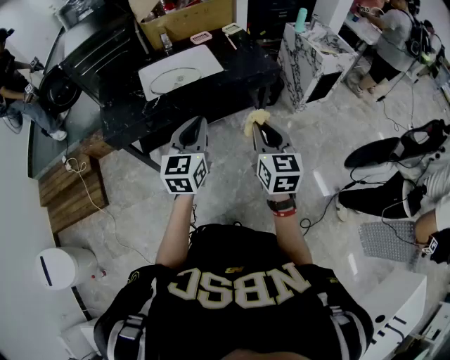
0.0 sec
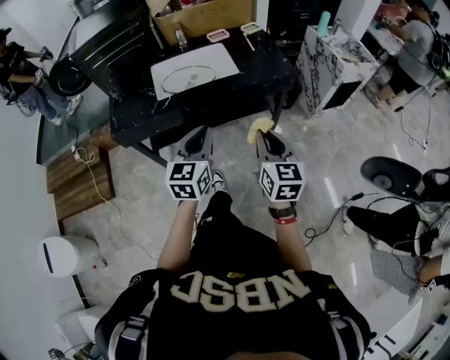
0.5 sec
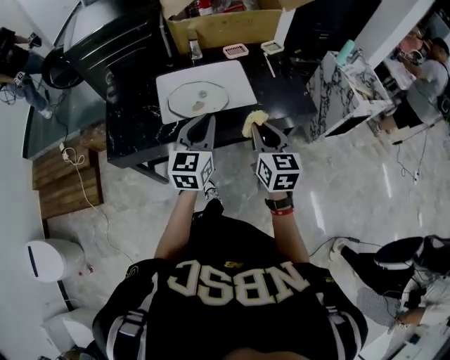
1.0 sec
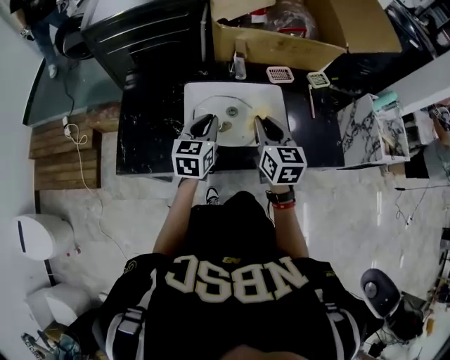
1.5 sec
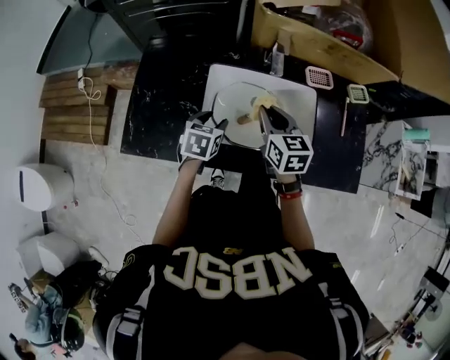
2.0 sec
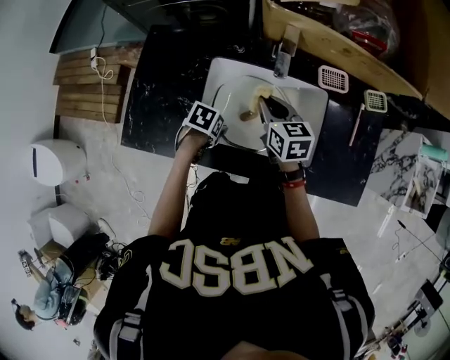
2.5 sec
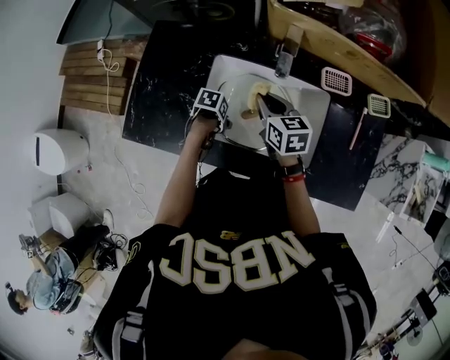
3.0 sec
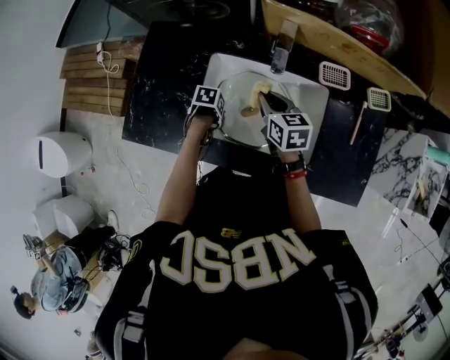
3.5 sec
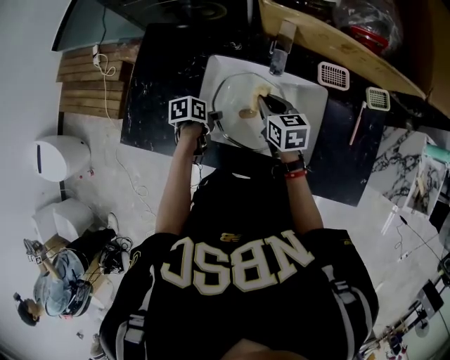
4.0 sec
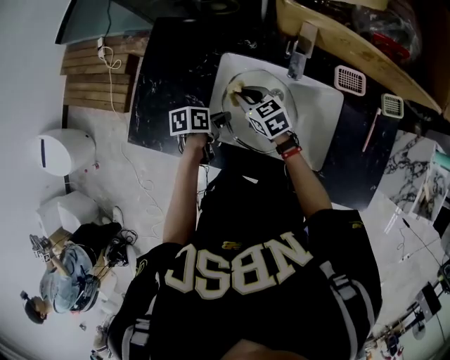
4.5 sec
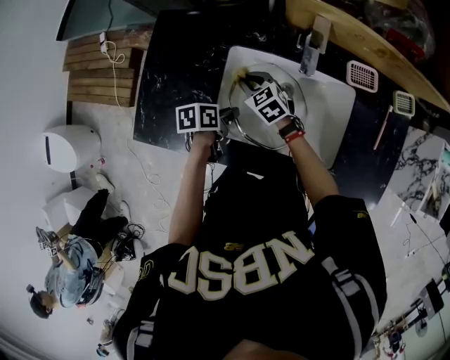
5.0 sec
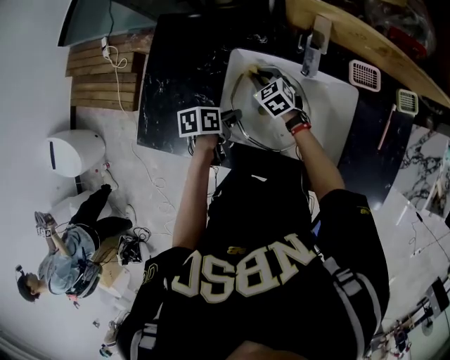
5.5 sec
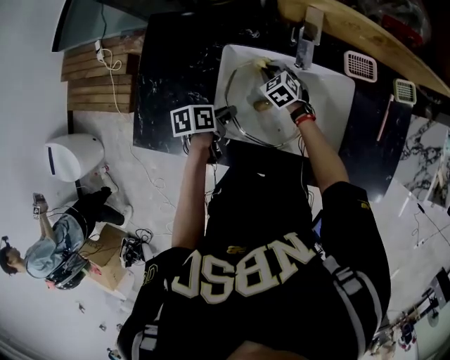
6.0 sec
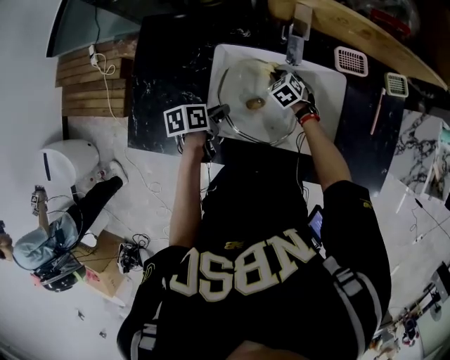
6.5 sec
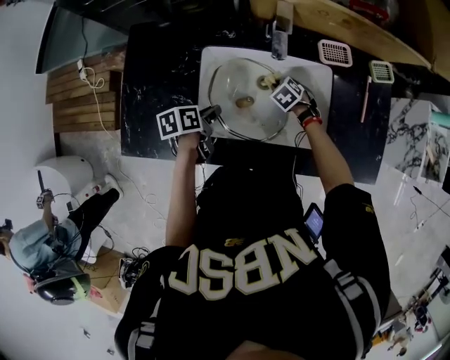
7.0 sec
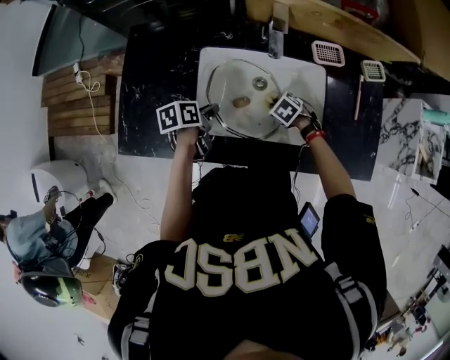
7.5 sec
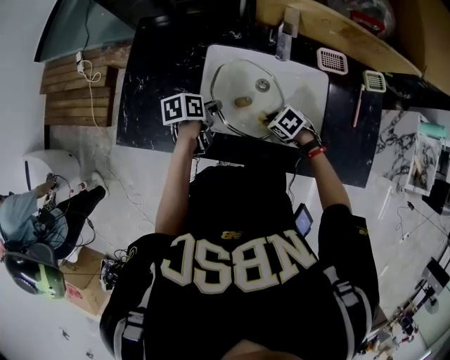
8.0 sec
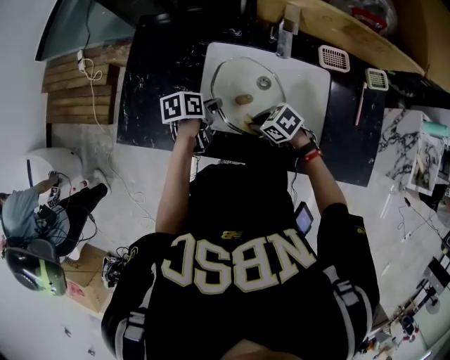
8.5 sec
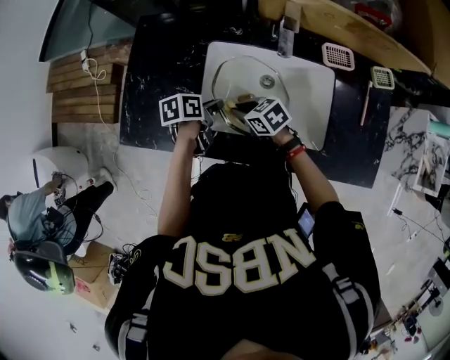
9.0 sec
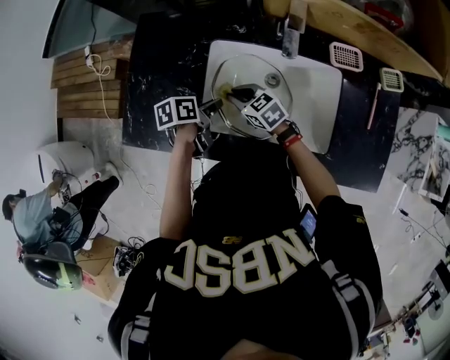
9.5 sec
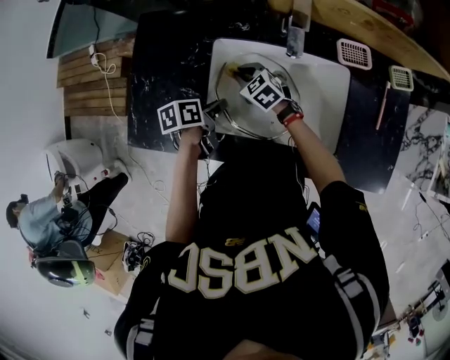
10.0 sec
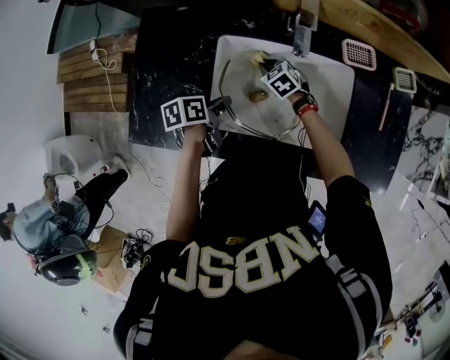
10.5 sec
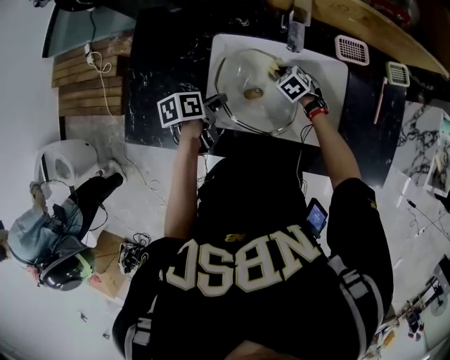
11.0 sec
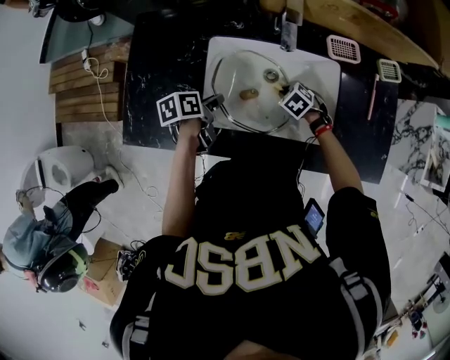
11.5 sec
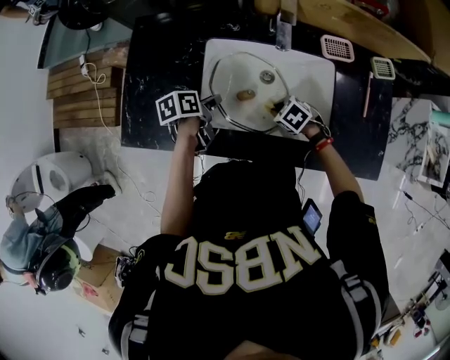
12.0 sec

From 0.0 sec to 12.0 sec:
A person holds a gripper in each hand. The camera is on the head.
From 0.0 sec to 2.0 sec: The pair of grippers is taken forward and to the left, some 50 cm. The right gripper swivels approximately 40 degrees. Meanwhile the left gripper moves downward, approximately 25 cm, angles its fingers downward, by some 40 degrees, and opens.
From 2.0 sec to 4.0 sec: Both grippers move downward, roughly 10 cm. The left gripper rotates around the line of its fingers by approximately 40 degrees, counterclockwise from behind, and closes its fingers.
From 4.0 sec to 6.0 sec: The right gripper shifts approximately 20 cm downward and forward, and changes its angle by some 40 degrees.
From 6.0 sec to 8.0 sec: The right gripper changes place by some 20 cm, and changes its angle by roughly 30 degrees.
From 8.0 sec to 10.0 sec: The right gripper ends up roughly 20 cm from where it was, and changes its angle by approximately 30 degrees.
From 10.0 sec to 12.0 sec: The right gripper moves to the right and backward, roughly 20 cm, and turns by about 30 degrees.

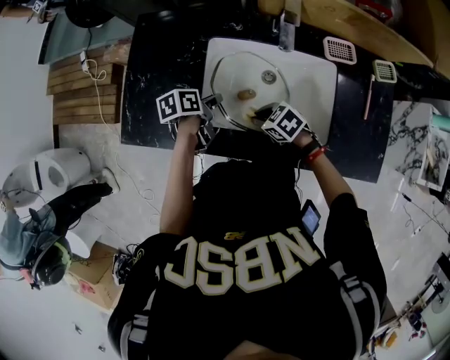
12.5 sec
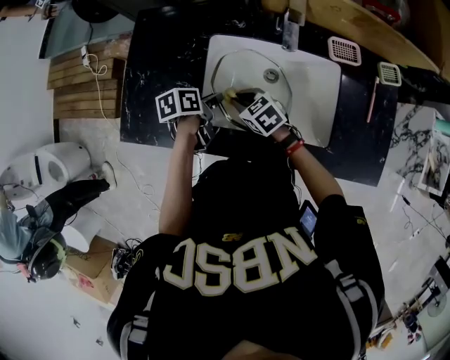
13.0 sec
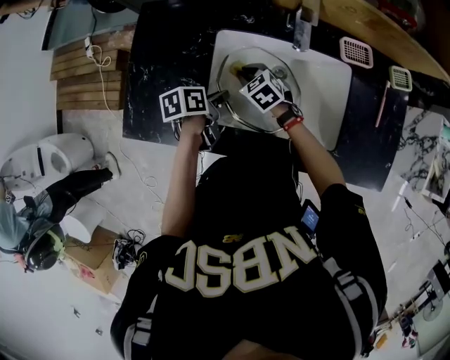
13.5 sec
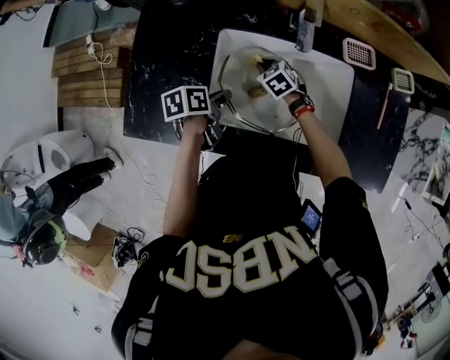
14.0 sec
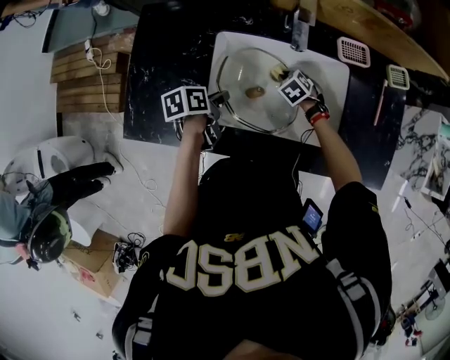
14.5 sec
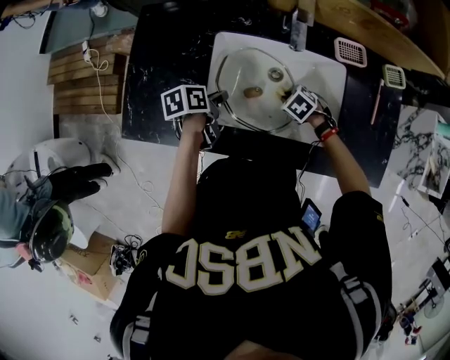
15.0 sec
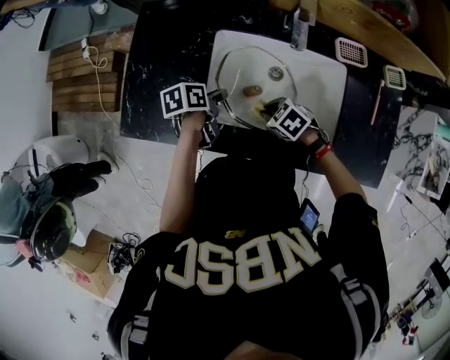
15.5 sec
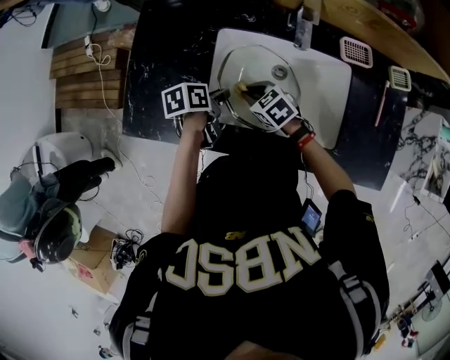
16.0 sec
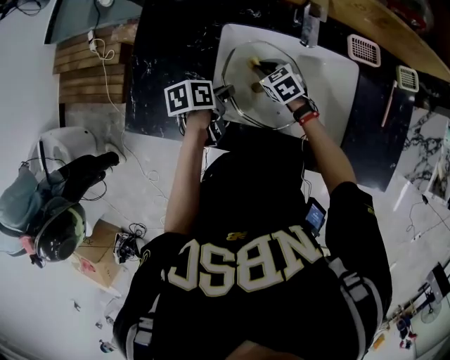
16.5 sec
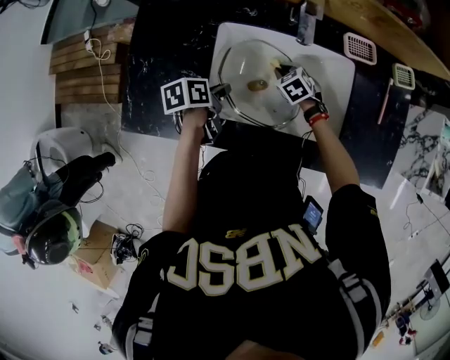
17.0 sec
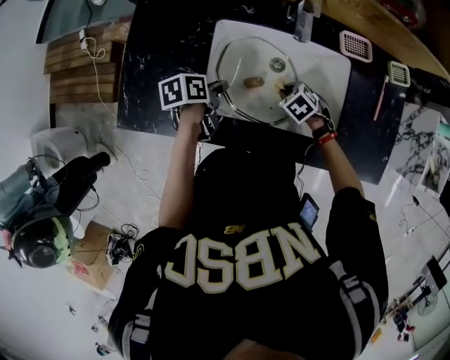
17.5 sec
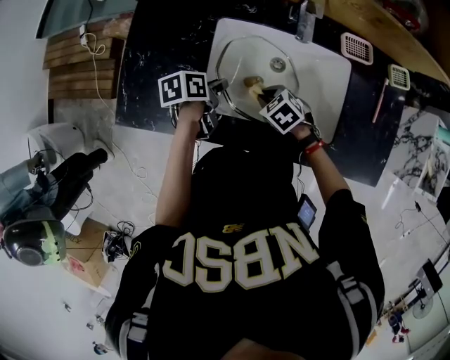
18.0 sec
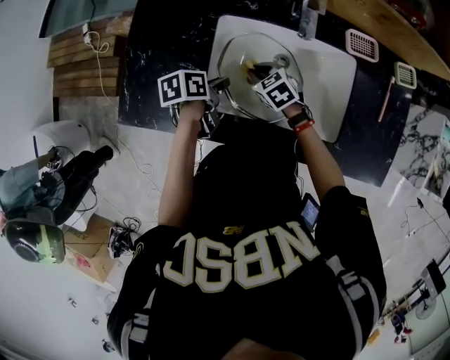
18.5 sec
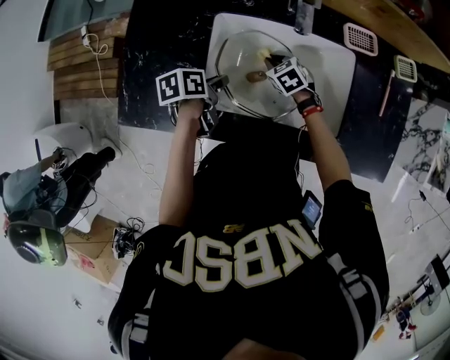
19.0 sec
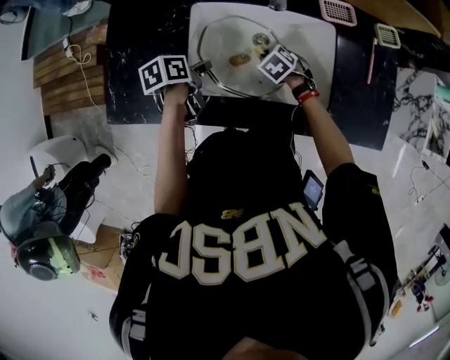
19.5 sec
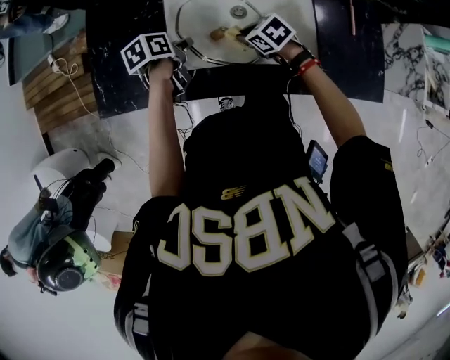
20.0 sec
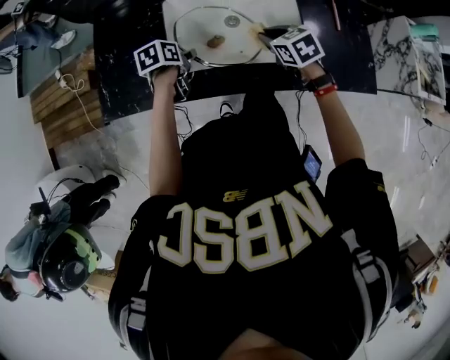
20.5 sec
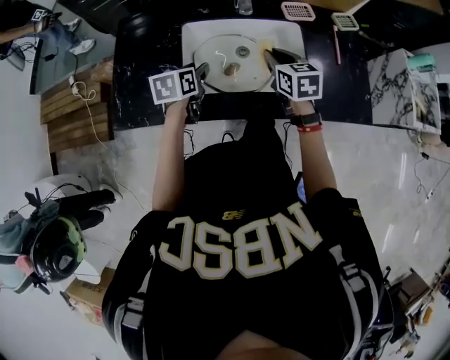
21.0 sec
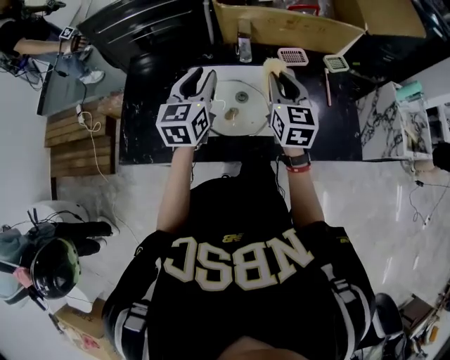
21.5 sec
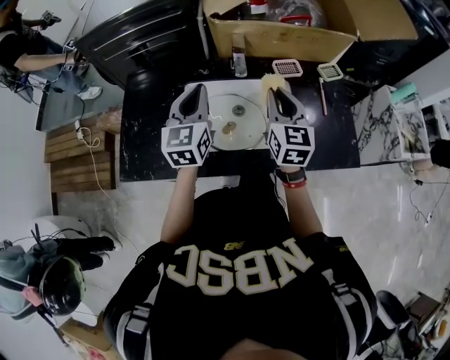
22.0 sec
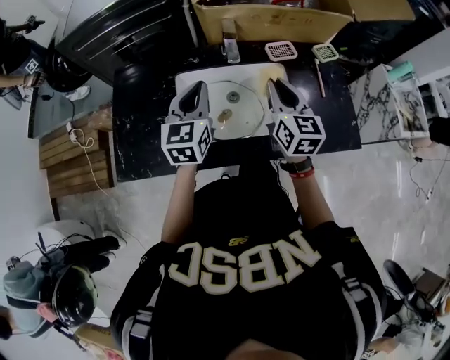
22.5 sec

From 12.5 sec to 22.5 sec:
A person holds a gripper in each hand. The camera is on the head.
From 12.5 sec to 14.5 sec: The right gripper shifts by approximately 20 cm, and swivels about 30 degrees.
From 14.5 sec to 16.5 sec: The right gripper changes its angle by approximately 20 degrees.
From 18.5 sec to 20.5 sec: The right gripper travels to the right, upward and backward by some 20 cm, and turns by roughly 20 degrees.
From 20.5 sec to 22.5 sec: The grippers both shift upward by roughly 20 cm. The left gripper tilts its fingers approximately 50 degrees upward, and closes, while the right gripper points its fingers some 40 degrees further upward.

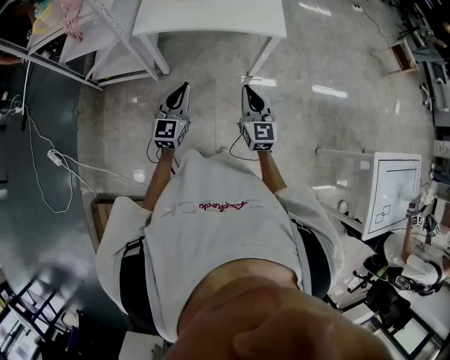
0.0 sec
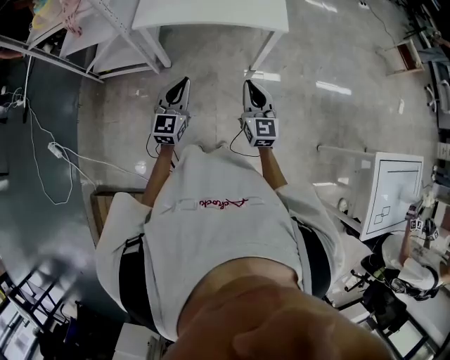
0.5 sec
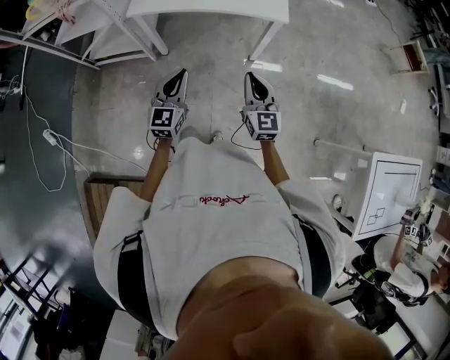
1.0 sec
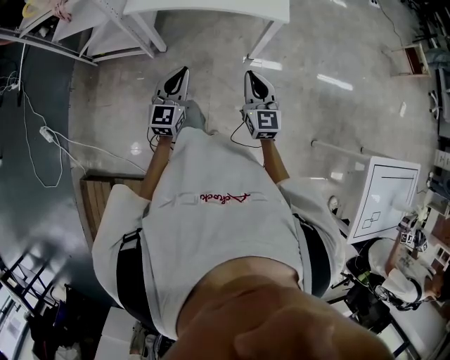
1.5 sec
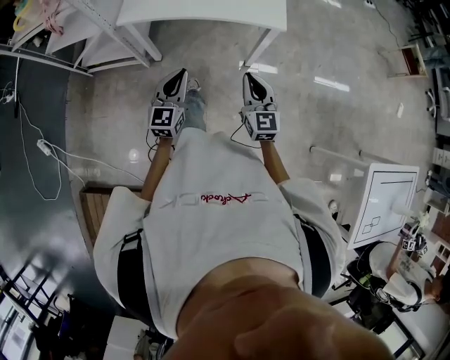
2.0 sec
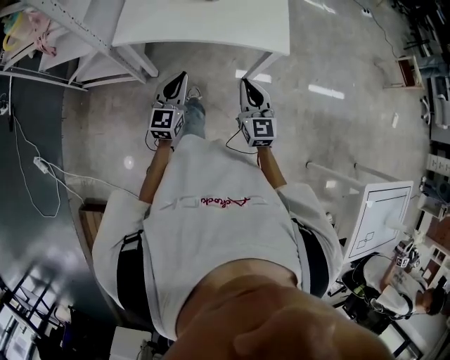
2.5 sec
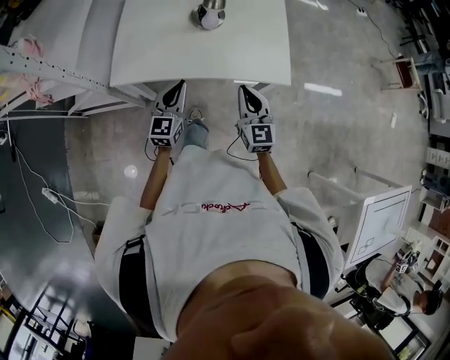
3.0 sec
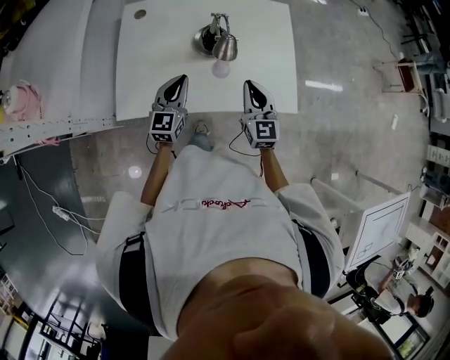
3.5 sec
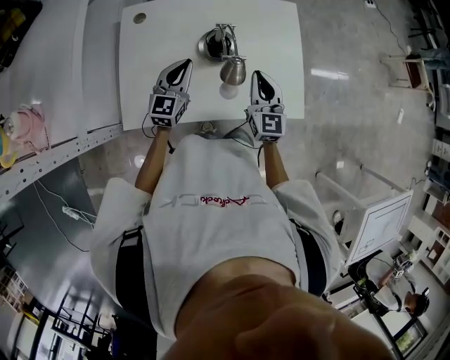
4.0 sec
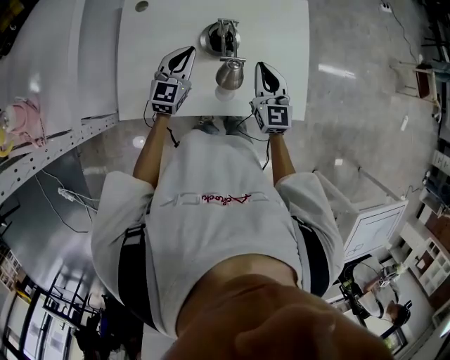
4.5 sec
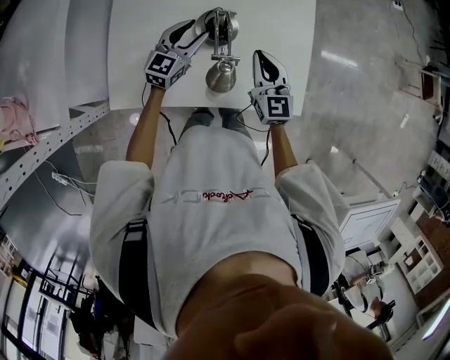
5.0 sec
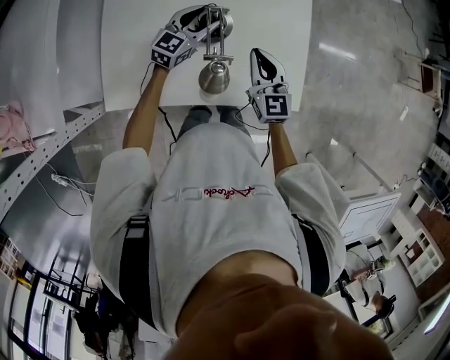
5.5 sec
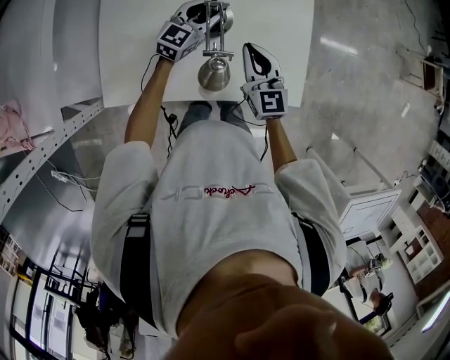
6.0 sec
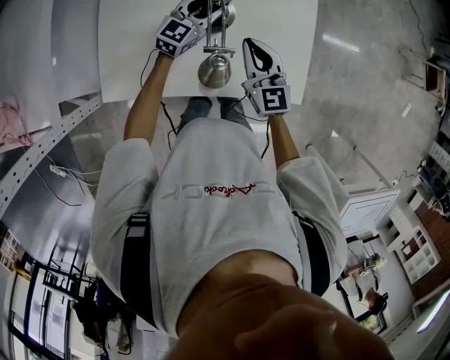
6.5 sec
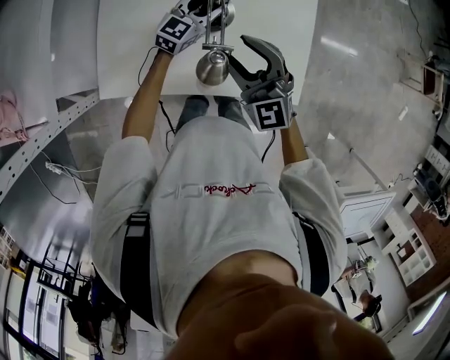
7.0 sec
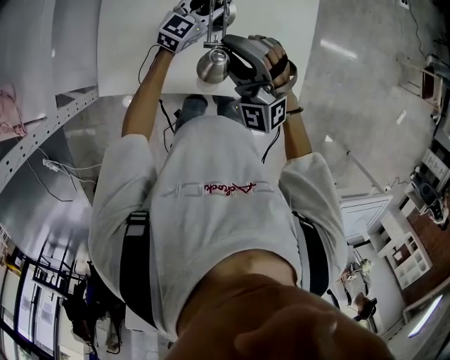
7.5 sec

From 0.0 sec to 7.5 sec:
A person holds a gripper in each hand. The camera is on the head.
From 0.0 sec to 2.0 sec: Both grippers move forward and to the right, about 10 cm.
From 2.0 sec to 4.0 sec: The two grippers travel together, forward, some 50 cm.
From 4.0 sec to 5.5 sec: The left gripper heads forward, to the right and downward, covering approximately 15 cm, and opens up; the right gripper moves forward, some 5 cm.
From 5.5 sec to 7.5 sec: The right gripper moves upward, to the left and backward, approximately 15 cm, twists roughly 60 degrees counterclockwise, seen from behind, and opens its fingers.
